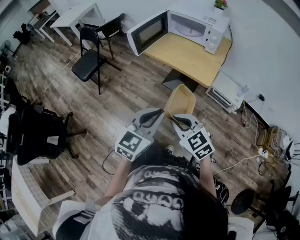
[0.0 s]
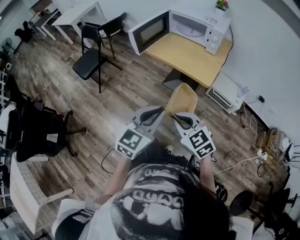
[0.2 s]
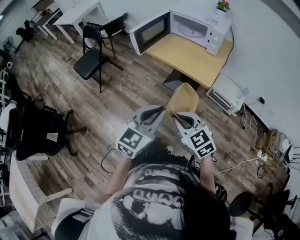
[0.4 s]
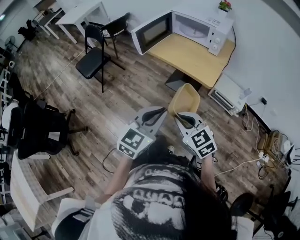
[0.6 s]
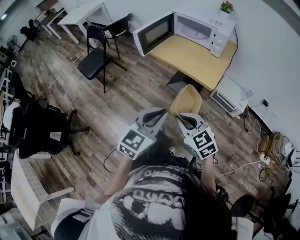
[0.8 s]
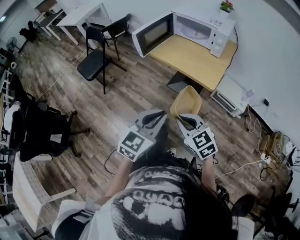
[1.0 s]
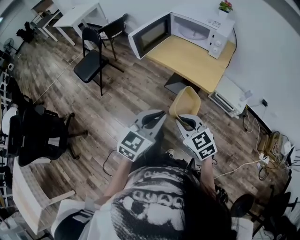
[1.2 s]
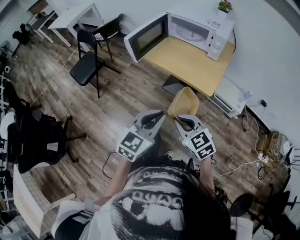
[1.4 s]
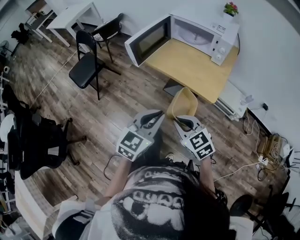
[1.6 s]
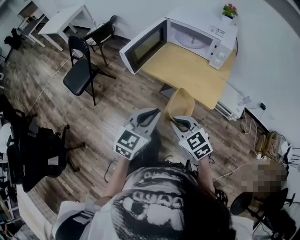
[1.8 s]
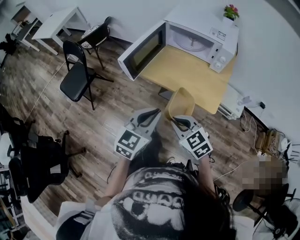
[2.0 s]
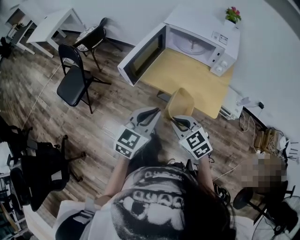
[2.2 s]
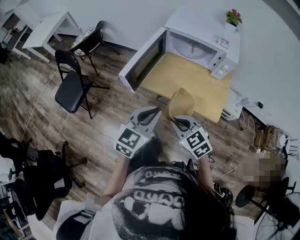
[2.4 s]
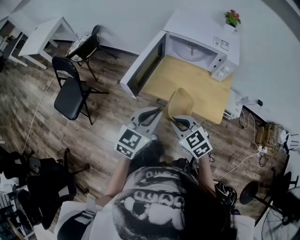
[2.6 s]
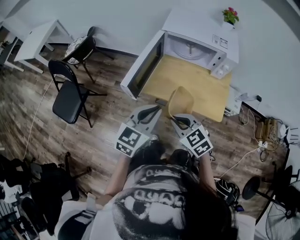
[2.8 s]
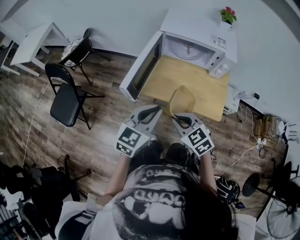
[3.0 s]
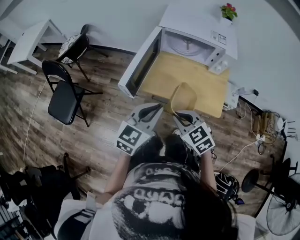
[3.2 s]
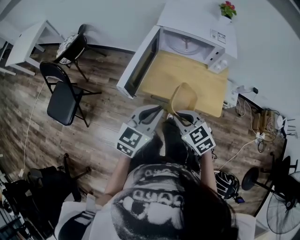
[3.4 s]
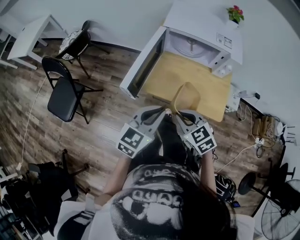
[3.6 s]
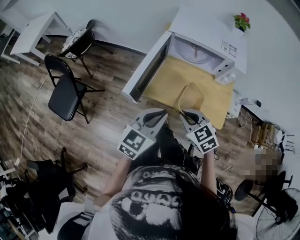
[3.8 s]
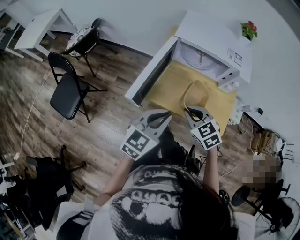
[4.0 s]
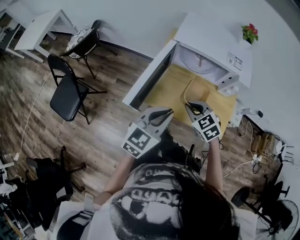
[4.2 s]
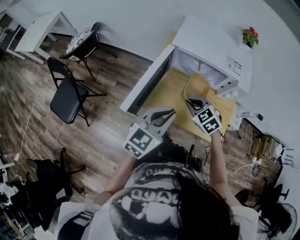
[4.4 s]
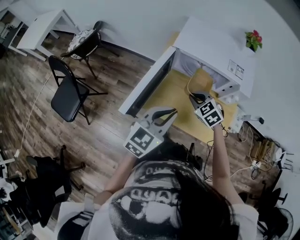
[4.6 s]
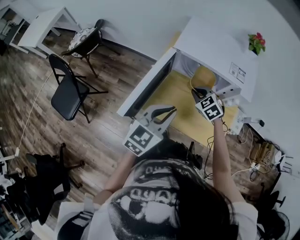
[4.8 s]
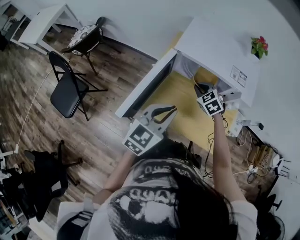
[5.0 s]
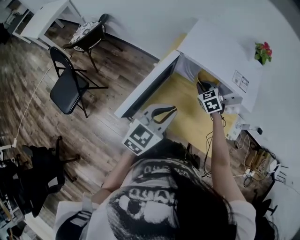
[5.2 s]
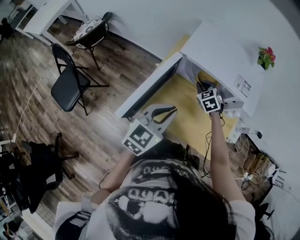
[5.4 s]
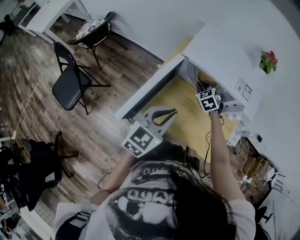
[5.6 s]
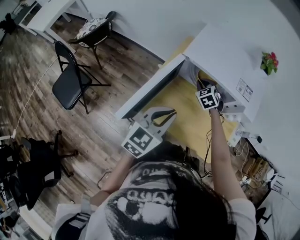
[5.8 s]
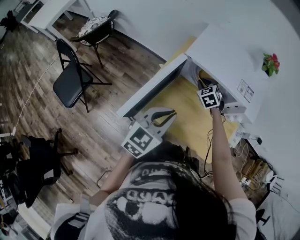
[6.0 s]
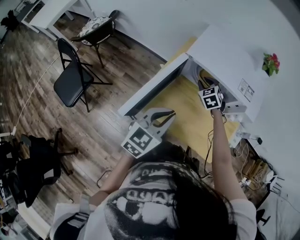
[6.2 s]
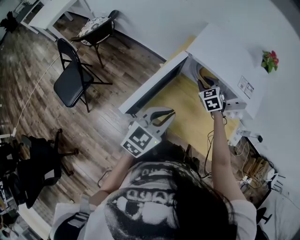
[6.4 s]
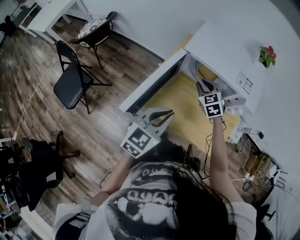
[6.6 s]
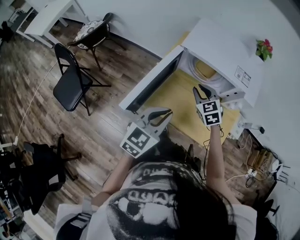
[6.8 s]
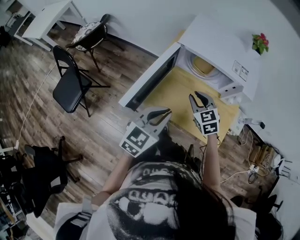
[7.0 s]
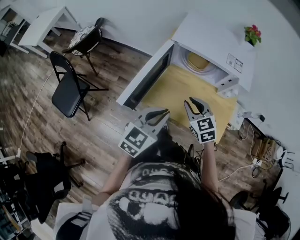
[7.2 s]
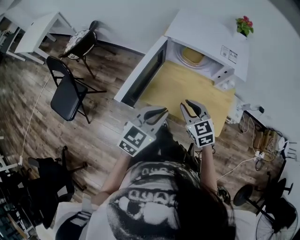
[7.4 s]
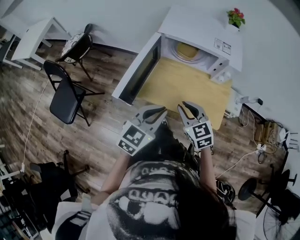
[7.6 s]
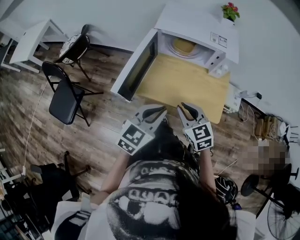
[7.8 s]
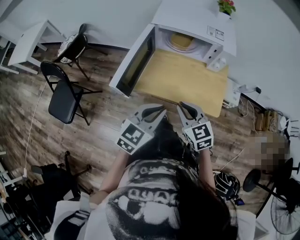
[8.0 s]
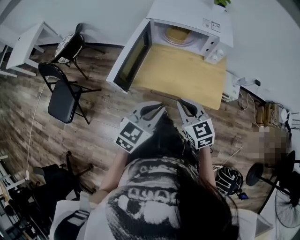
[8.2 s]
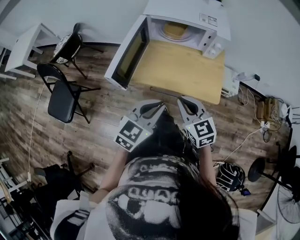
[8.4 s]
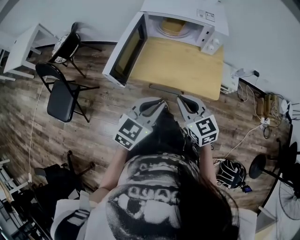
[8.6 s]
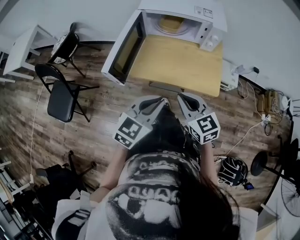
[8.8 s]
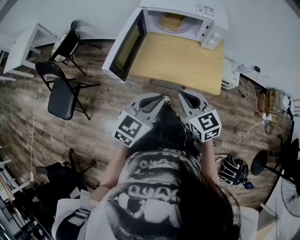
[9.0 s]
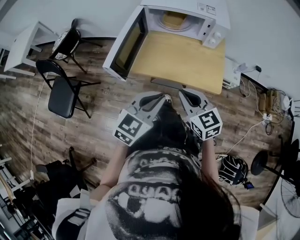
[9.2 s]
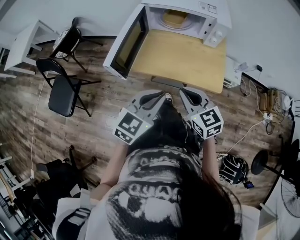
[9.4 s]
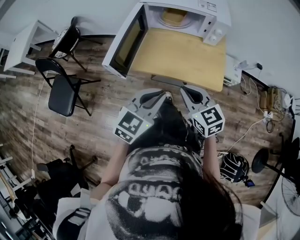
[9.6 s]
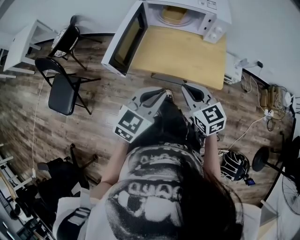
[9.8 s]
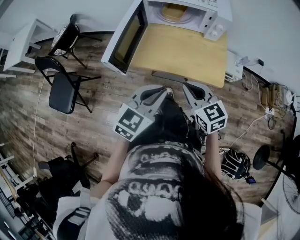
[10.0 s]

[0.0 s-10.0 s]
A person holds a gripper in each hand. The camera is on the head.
0.0 to 1.4 s: Both grippers travel together forward, about 10 cm.
1.4 to 2.8 s: The left gripper moves forward, about 30 cm. The right gripper goes some 30 cm forward and to the left.
2.8 to 4.2 s: The left gripper is displaced forward by some 10 cm; the right gripper is displaced forward by roughly 15 cm.
4.2 to 5.8 s: The left gripper moves forward, approximately 10 cm. The right gripper is displaced forward by roughly 25 cm.
5.8 to 7.2 s: The left gripper heads backward, covering approximately 10 cm; the right gripper shifts roughly 20 cm backward, and turns by some 20 degrees.
7.2 to 8.6 s: Both grippers travel together backward, roughly 15 cm.
8.6 to 10.0 s: The grippers make only small movements.

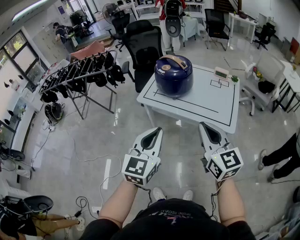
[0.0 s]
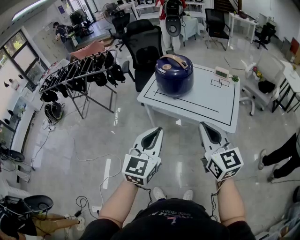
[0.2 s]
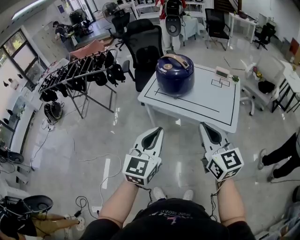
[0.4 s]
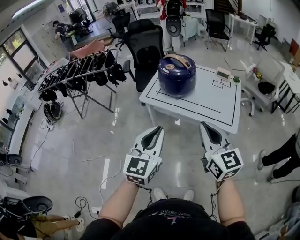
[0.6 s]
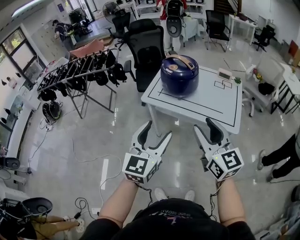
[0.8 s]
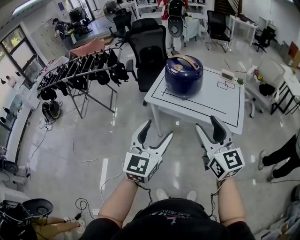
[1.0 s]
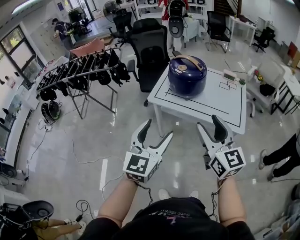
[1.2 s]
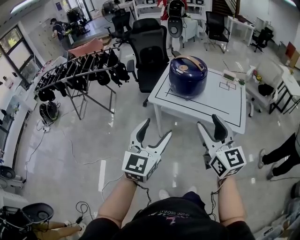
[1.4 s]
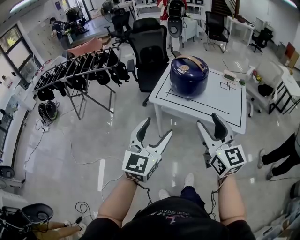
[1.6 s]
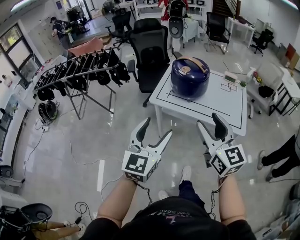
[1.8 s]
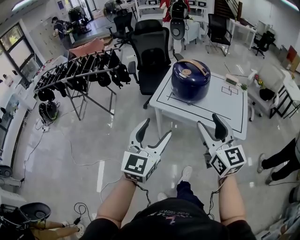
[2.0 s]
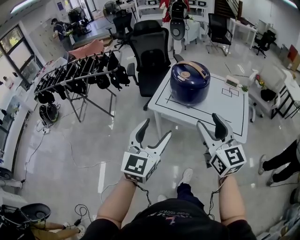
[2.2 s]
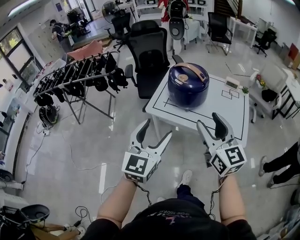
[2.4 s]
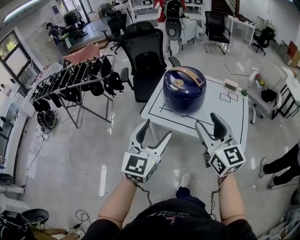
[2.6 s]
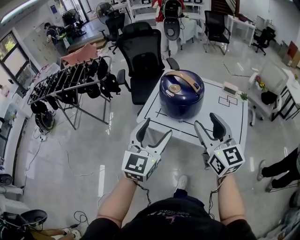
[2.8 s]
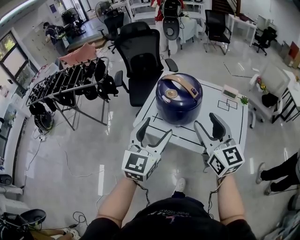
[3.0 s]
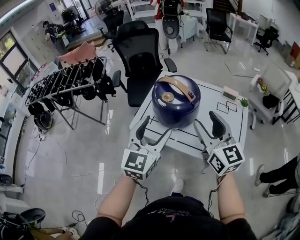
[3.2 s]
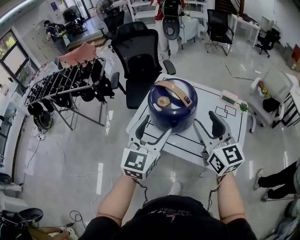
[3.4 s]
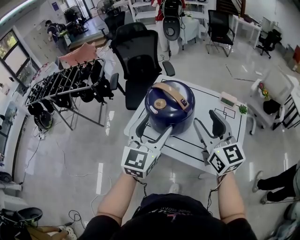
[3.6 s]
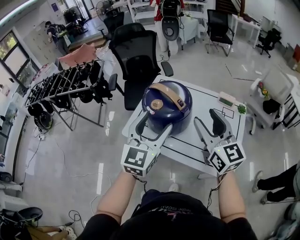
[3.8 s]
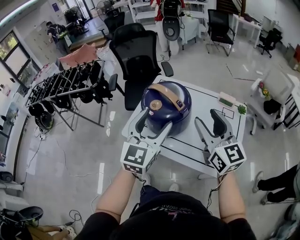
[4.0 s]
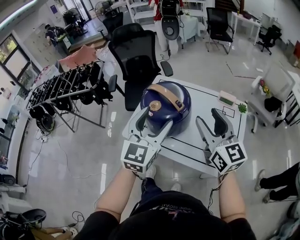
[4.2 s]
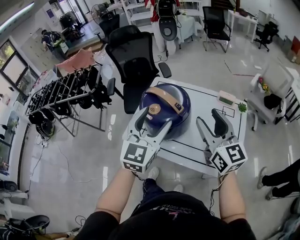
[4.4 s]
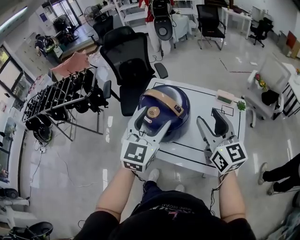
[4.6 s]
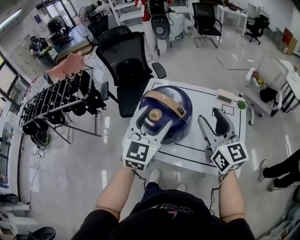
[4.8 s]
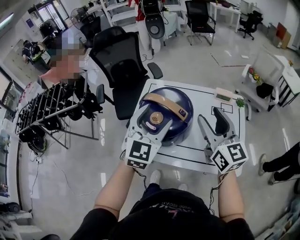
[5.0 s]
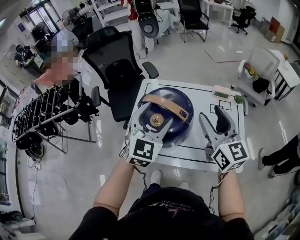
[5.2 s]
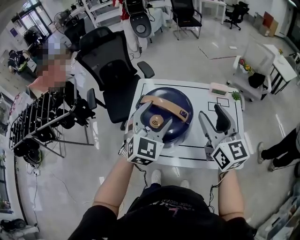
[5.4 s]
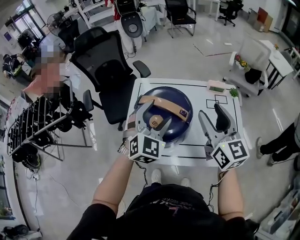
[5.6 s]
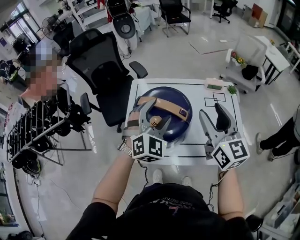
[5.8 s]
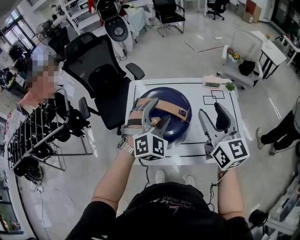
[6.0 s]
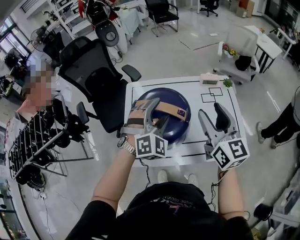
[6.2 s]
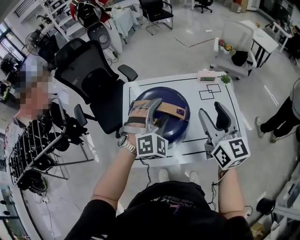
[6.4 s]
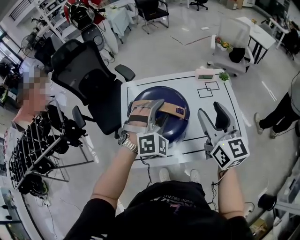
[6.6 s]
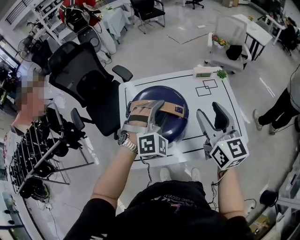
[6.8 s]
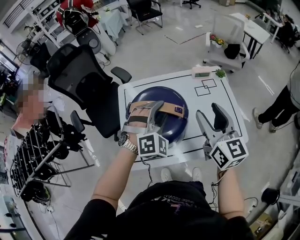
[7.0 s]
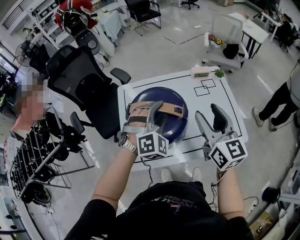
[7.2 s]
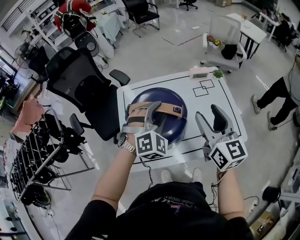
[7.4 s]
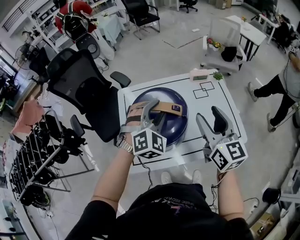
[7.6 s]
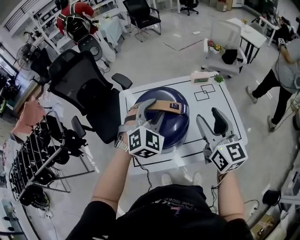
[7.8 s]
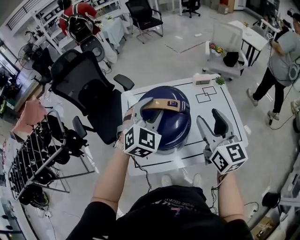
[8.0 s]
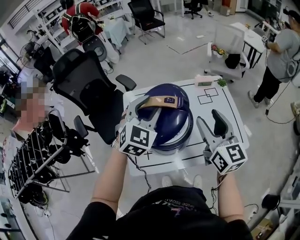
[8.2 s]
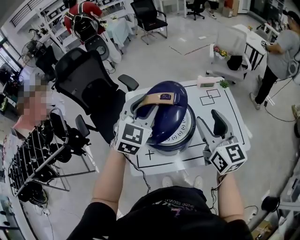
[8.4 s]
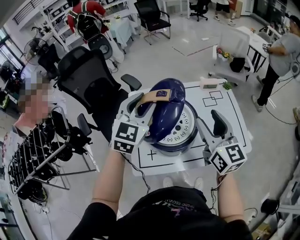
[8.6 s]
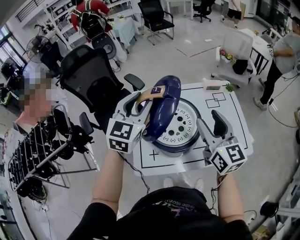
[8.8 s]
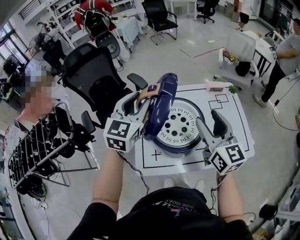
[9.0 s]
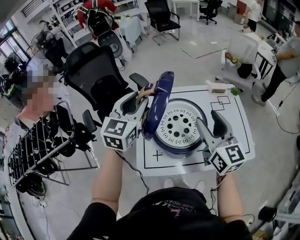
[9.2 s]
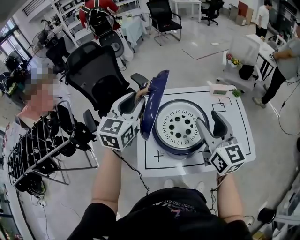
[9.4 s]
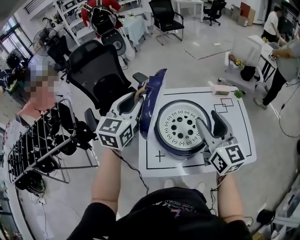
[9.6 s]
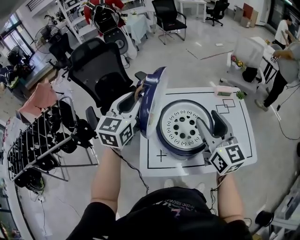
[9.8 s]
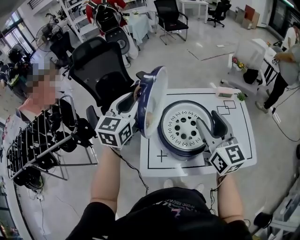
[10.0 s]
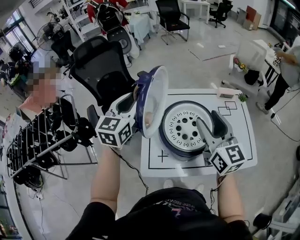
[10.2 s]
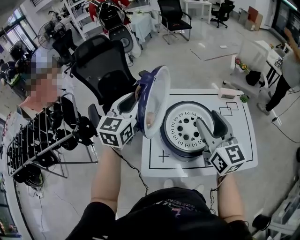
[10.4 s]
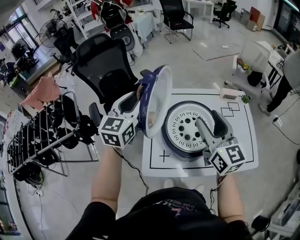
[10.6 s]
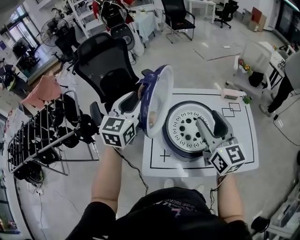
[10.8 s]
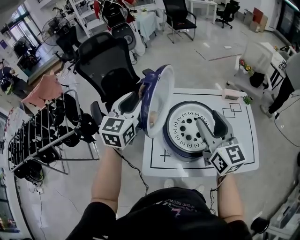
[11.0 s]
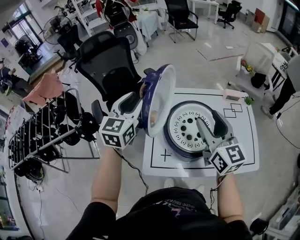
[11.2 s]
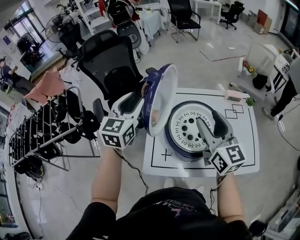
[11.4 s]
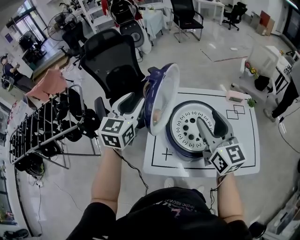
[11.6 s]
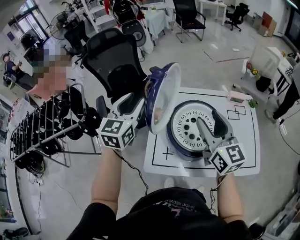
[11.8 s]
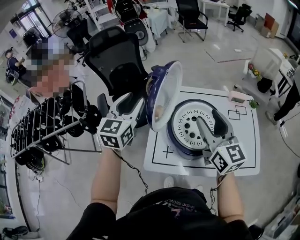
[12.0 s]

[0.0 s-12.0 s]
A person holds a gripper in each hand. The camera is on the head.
0.0 to 1.6 s: The grippers both shift to the left by roughly 15 cm. The left gripper opens up; the right gripper opens.
1.6 to 3.0 s: The left gripper travels forward and to the right by roughly 25 cm. The right gripper travels forward by roughly 25 cm.
3.0 to 4.4 s: The two grippers go some 15 cm forward and to the right.
4.4 to 6.0 s: The right gripper travels forward by roughly 5 cm, and turns by approximately 30 degrees. The left gripper goes about 15 cm forward and downward, and rotates around the line of its fingers by some 40 degrees, clockwise from behind.
6.0 to 7.6 s: The left gripper closes its fingers.
7.6 to 9.0 s: The right gripper goes approximately 10 cm to the left, while the left gripper moves to the left and upward, roughly 20 cm, and rotates around the line of its fingers by approximately 40 degrees, counterclockwise from behind.
9.0 to 10.4 s: The right gripper is displaced to the left by about 5 cm. The left gripper shifts roughly 10 cm to the left.
10.4 to 12.0 s: The left gripper shifts by approximately 5 cm.

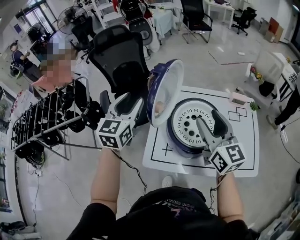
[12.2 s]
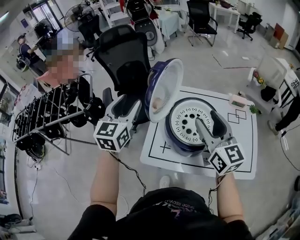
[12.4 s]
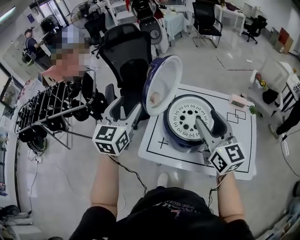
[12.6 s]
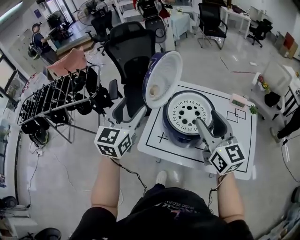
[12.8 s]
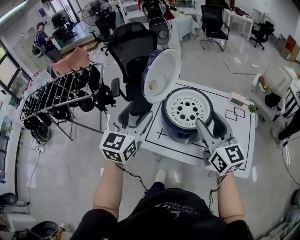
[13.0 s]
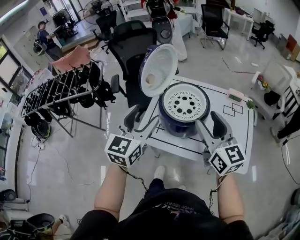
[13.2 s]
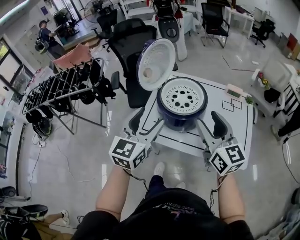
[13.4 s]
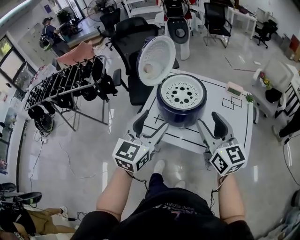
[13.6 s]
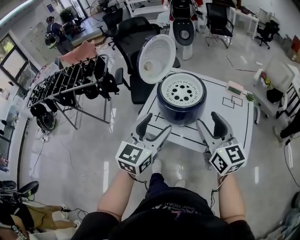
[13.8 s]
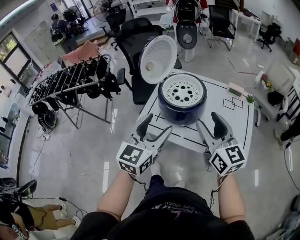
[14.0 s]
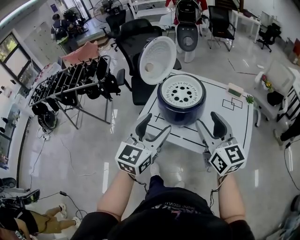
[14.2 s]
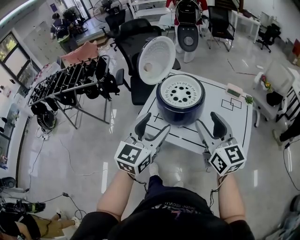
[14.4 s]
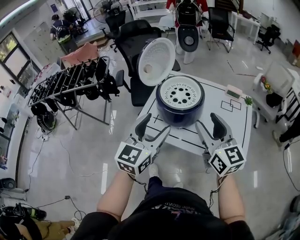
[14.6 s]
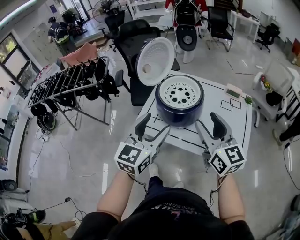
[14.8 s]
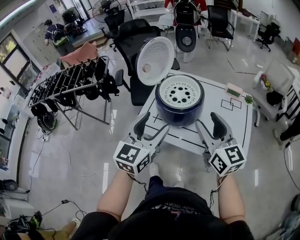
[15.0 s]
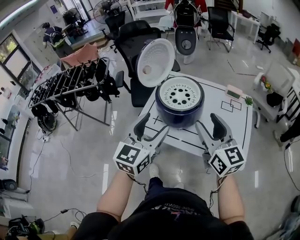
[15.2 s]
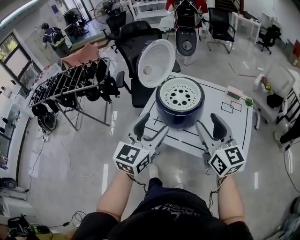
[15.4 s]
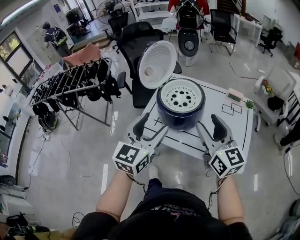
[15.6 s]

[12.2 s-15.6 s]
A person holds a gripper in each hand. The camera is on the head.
12.2 to 13.8 s: The right gripper travels backward and to the right by roughly 25 cm. Meanwhile the left gripper travels backward and to the right by some 35 cm, and opens.
13.8 to 15.6 s: The grippers make only small movements.
